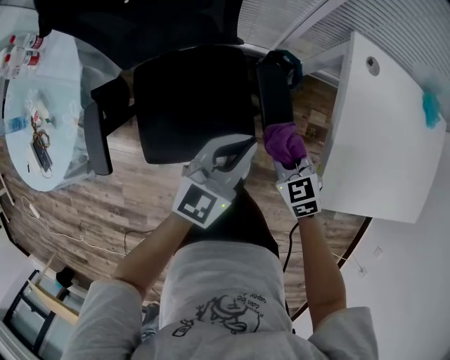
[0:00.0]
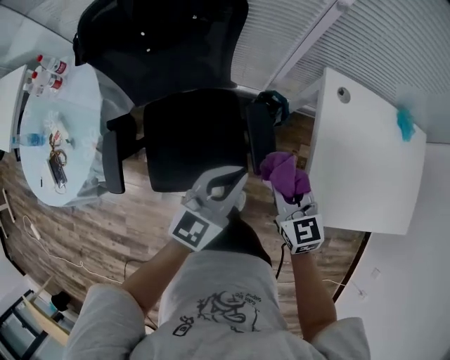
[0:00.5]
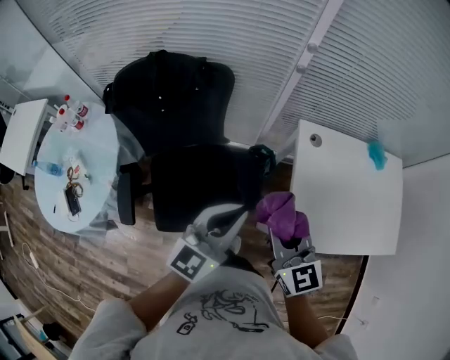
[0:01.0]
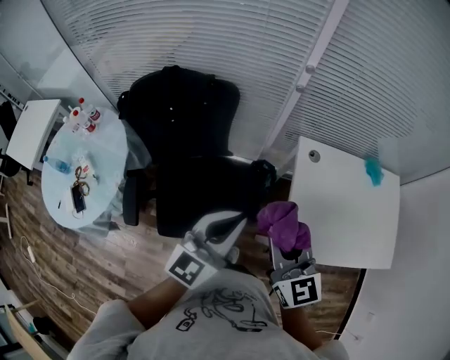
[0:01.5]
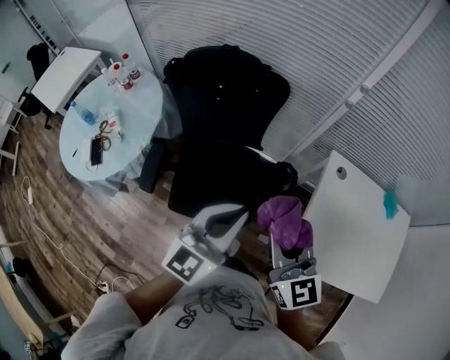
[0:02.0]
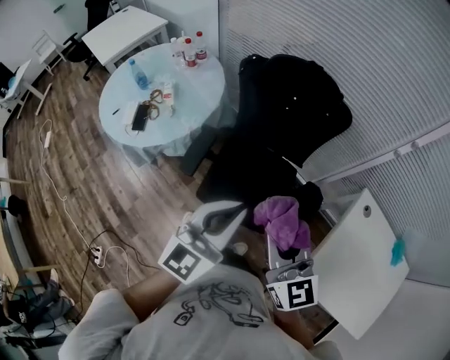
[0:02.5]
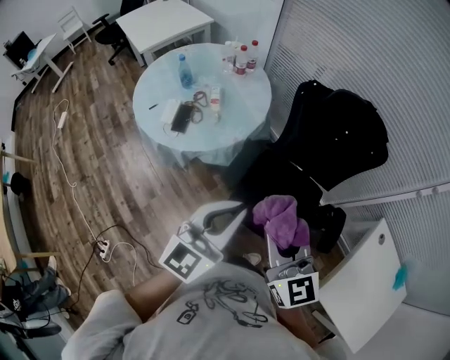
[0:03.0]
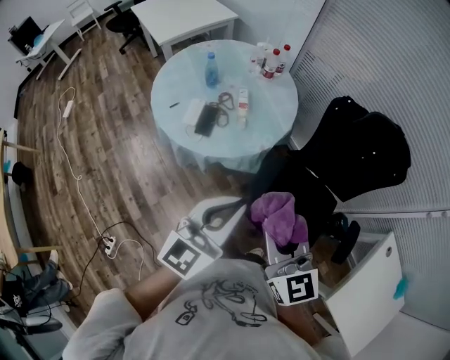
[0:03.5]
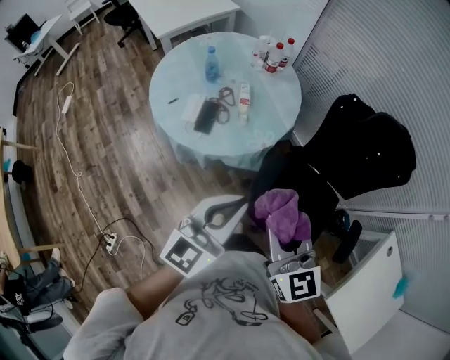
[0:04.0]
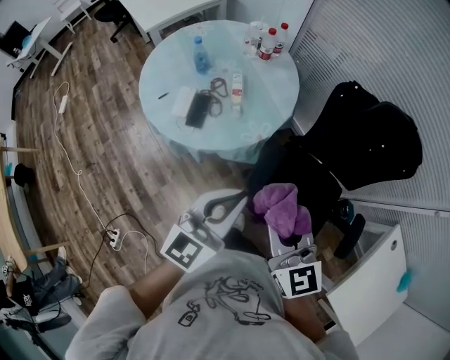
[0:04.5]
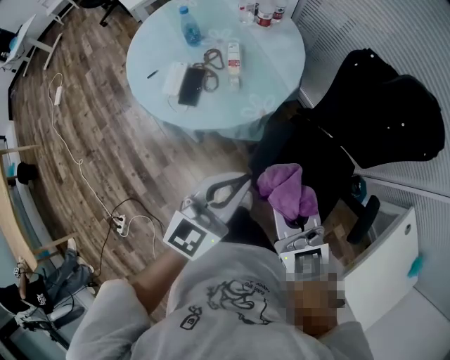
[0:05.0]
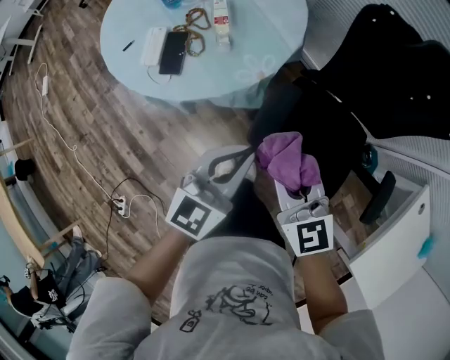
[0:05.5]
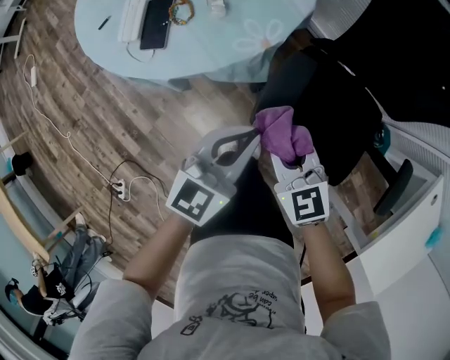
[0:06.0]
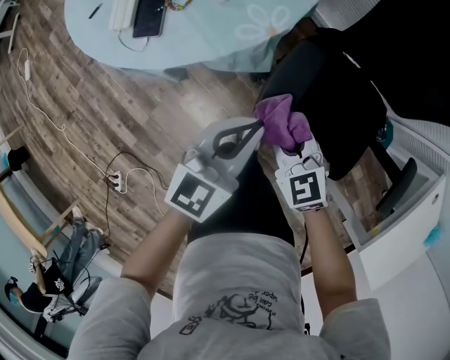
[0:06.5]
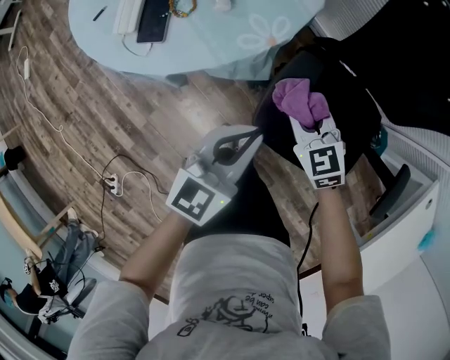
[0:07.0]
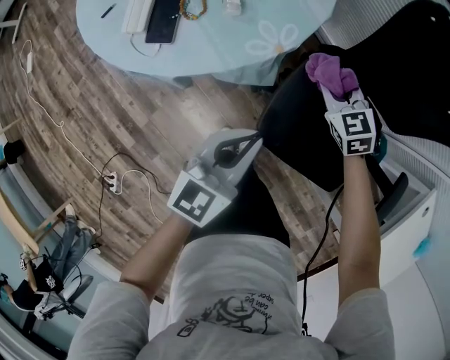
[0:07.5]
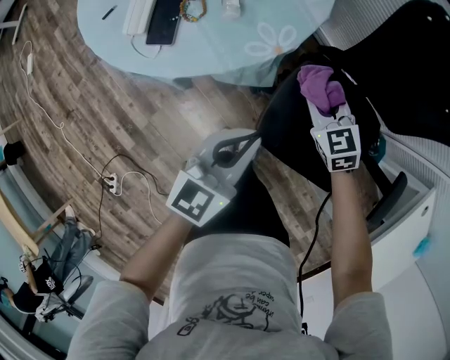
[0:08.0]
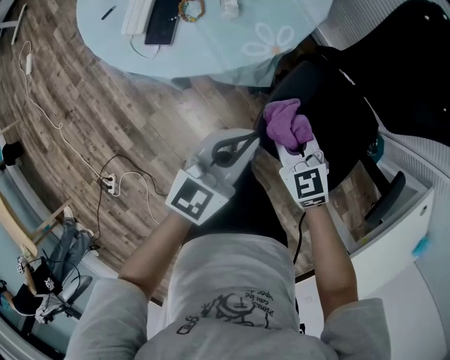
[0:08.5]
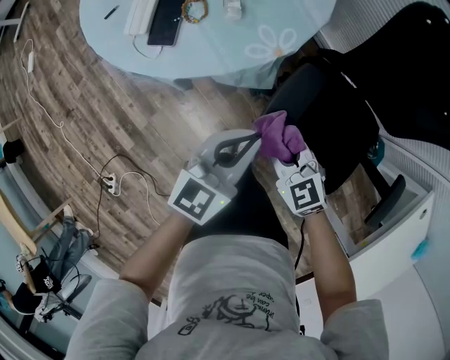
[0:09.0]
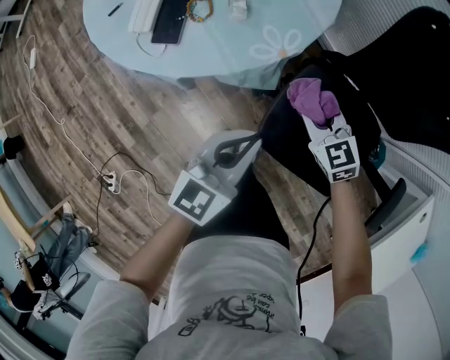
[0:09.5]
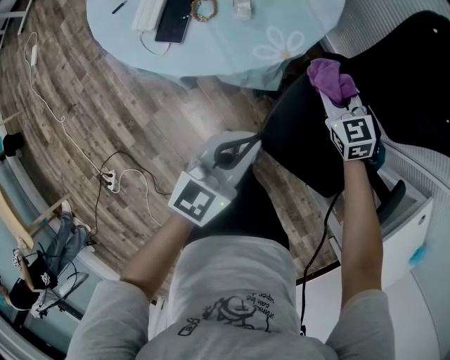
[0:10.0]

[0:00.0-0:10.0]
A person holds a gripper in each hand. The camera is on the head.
0:00.0 to 0:02.0: The grippers both shift upward by roughly 40 cm. The left gripper changes its angle by about 20 degrees. The right gripper angles its fingers upward, by approximately 40 degrees.
0:02.0 to 0:04.0: Both grippers are carried about 50 cm. The right gripper swivels roughly 30 degrees. Meanwhile the left gripper swivels approximately 30 degrees.
0:04.0 to 0:06.0: The grippers both shift downward by approximately 35 cm. The right gripper rotates approximately 20 degrees.
0:06.0 to 0:08.0: The right gripper travels forward and downward by approximately 15 cm.
0:08.0 to 0:10.0: The right gripper travels backward and back again, roughly 15 cm each way.

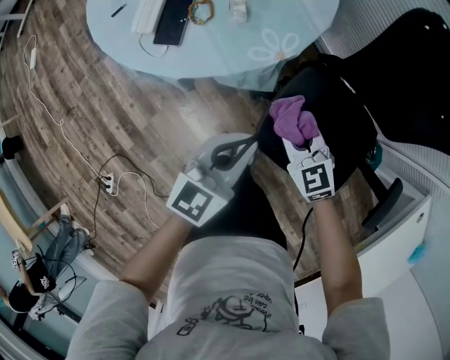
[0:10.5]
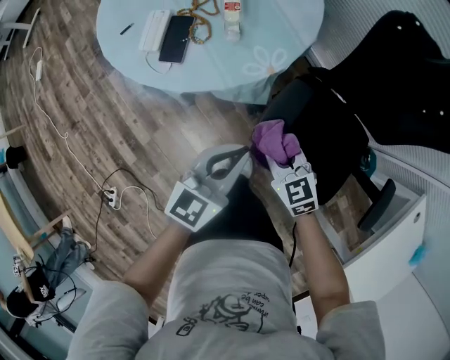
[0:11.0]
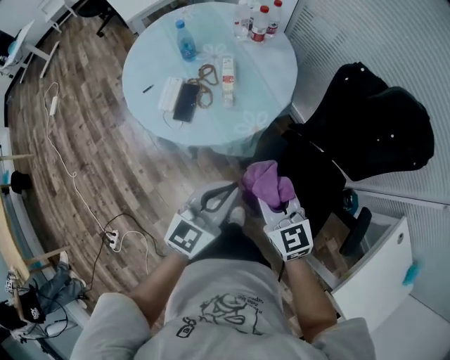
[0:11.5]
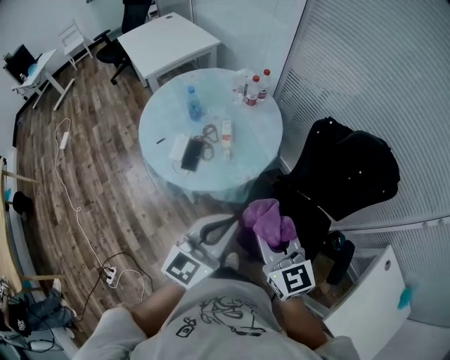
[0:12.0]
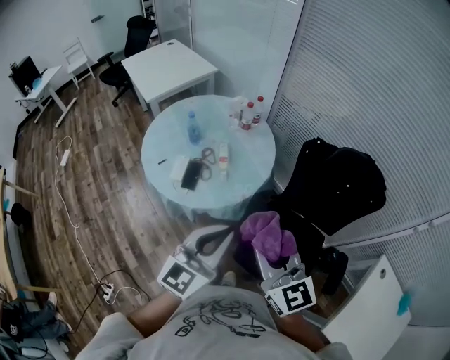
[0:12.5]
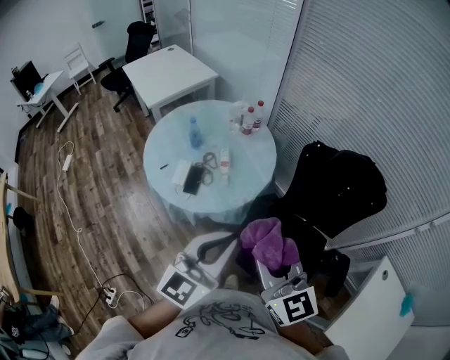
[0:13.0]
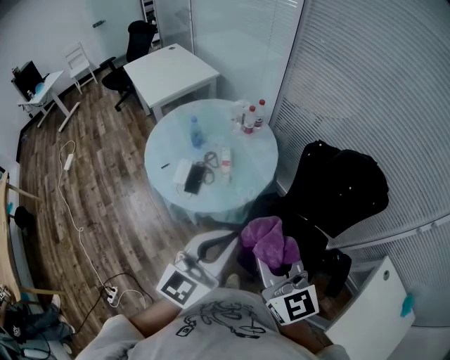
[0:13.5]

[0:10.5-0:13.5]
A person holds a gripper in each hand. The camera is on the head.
0:10.5 to 0:12.0: The grippers both shift upward by roughly 35 cm. The right gripper swivels roughly 30 degrees.
0:12.0 to 0:13.5: The left gripper moves upward, some 10 cm; the right gripper shifts some 10 cm upward and backward.

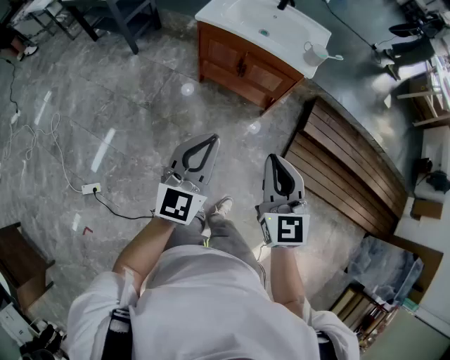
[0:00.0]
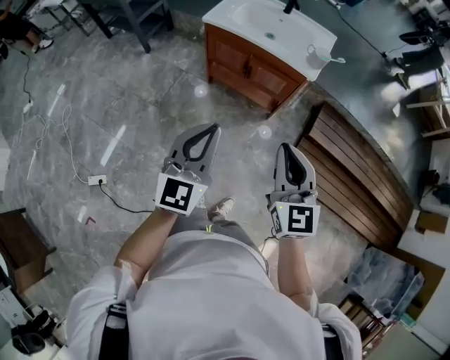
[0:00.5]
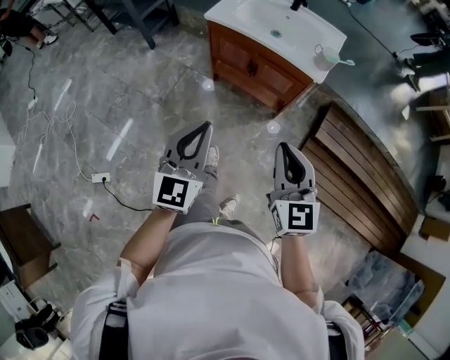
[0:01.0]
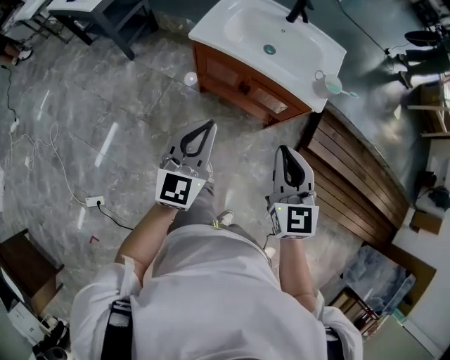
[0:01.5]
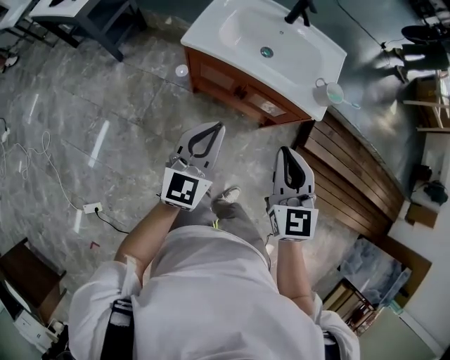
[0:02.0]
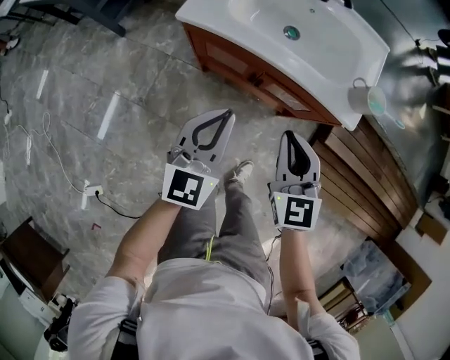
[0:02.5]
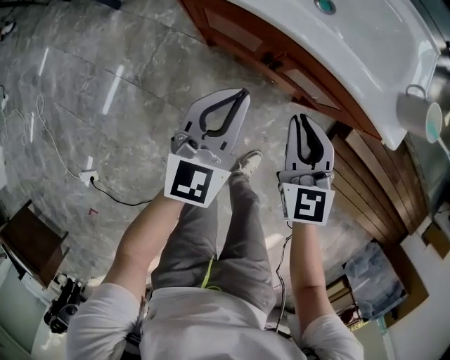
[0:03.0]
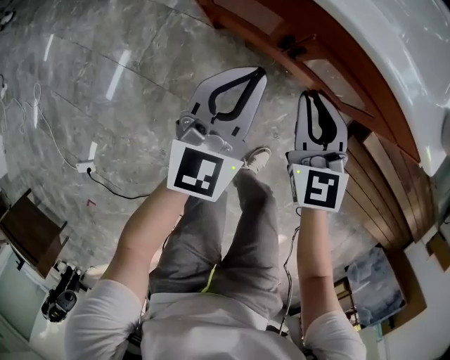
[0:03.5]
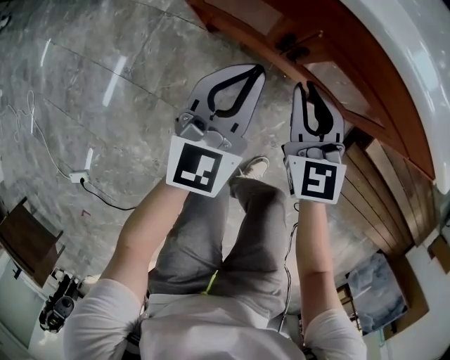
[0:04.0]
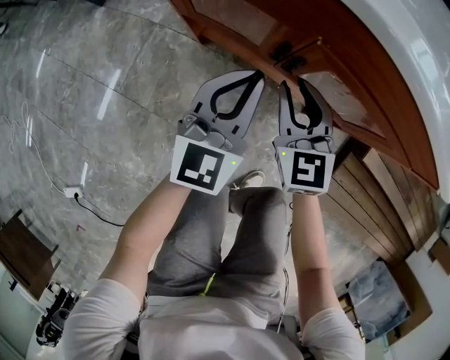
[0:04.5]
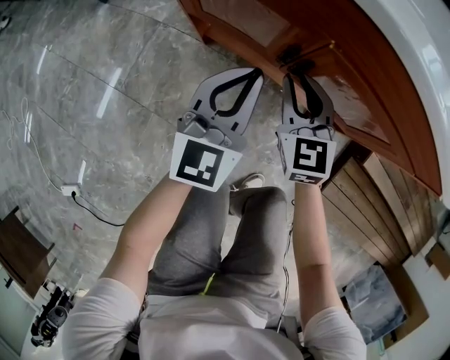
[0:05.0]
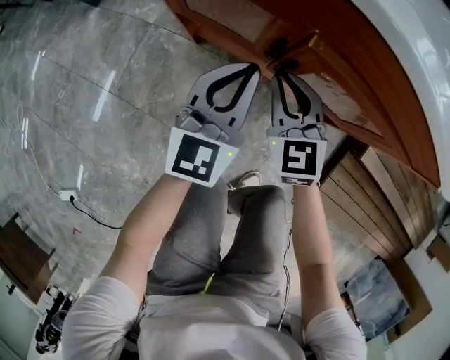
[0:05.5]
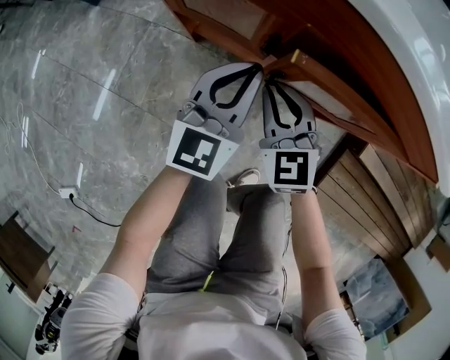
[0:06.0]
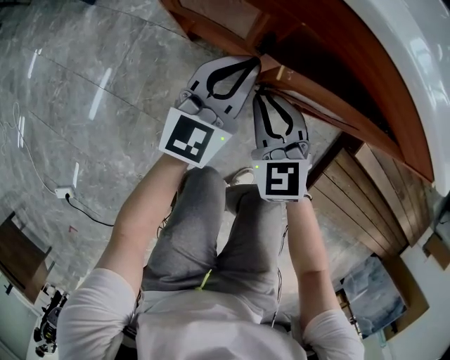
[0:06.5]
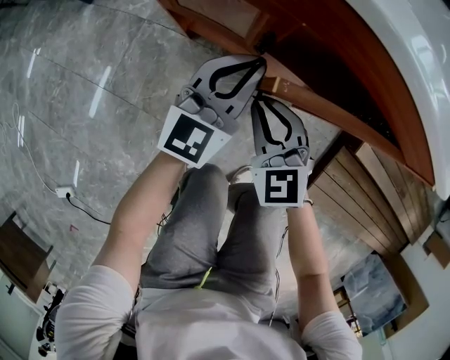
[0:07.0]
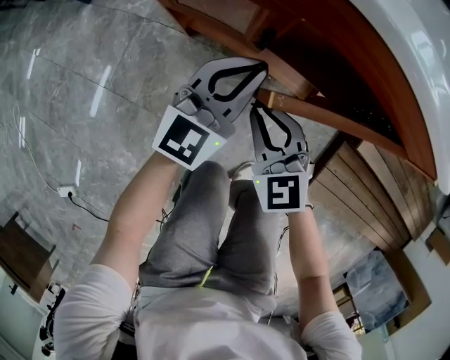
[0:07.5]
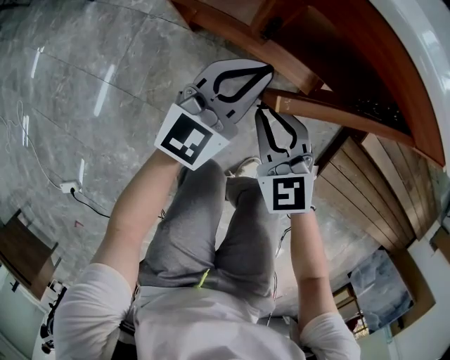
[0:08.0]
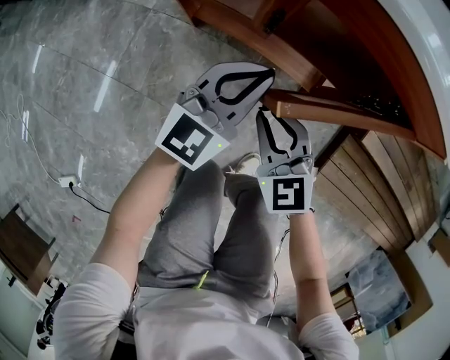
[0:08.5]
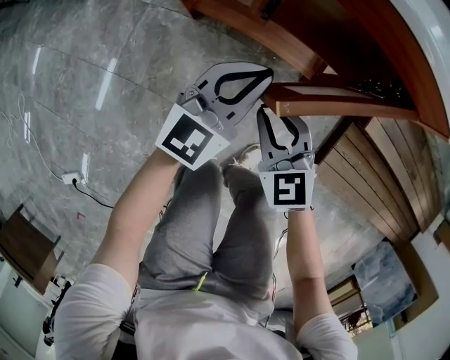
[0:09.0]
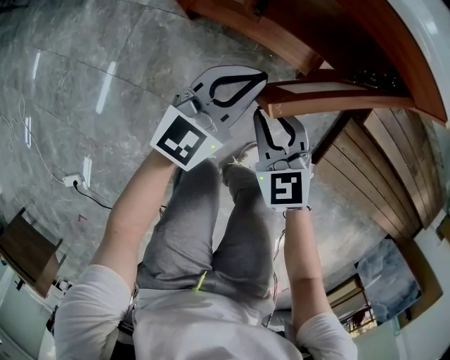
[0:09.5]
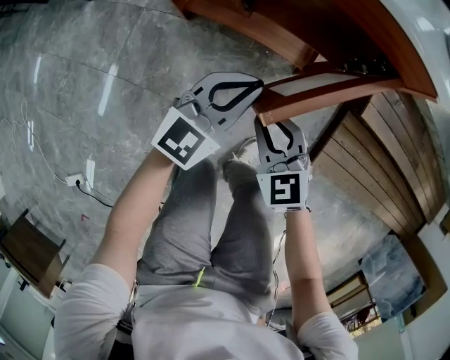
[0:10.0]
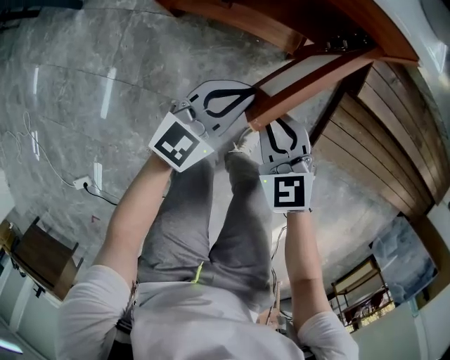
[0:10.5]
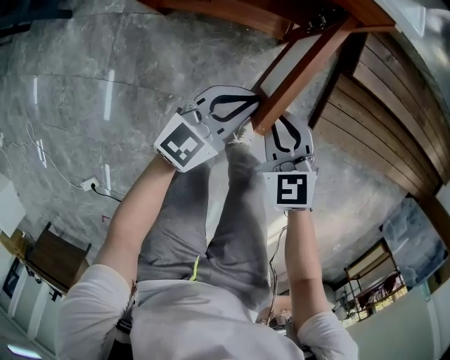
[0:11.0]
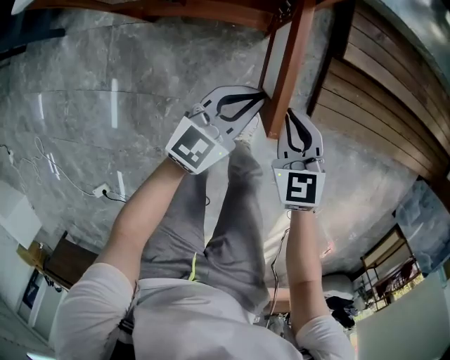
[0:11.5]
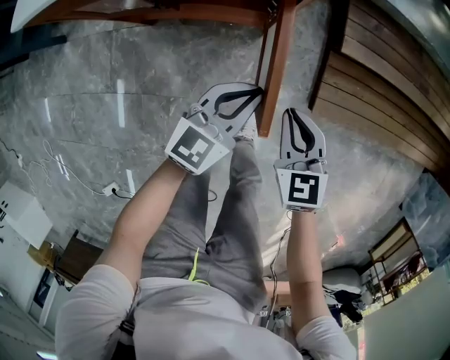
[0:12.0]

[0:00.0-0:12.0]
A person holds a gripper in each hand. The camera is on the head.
0:00.0 to 0:02.0: The grippers both shift forward by roughly 35 cm.
0:02.0 to 0:04.0: Both grippers move downward, some 50 cm.
0:04.0 to 0:06.0: Both grippers move downward, some 5 cm.
0:06.0 to 0:08.0: The right gripper travels backward by roughly 10 cm.
0:08.0 to 0:10.0: Both grippers travel together backward and to the right, some 10 cm.
0:10.0 to 0:12.0: The right gripper travels to the right and upward by approximately 20 cm, and rotates about 30 degrees, while the left gripper goes approximately 20 cm to the right.

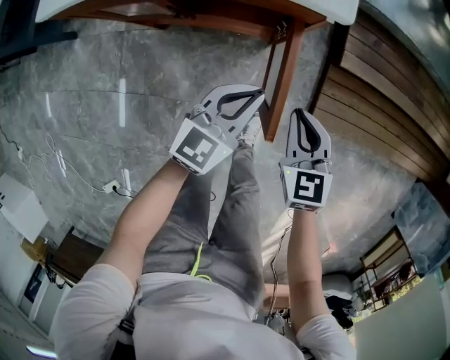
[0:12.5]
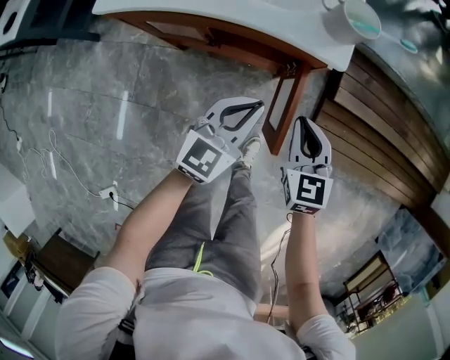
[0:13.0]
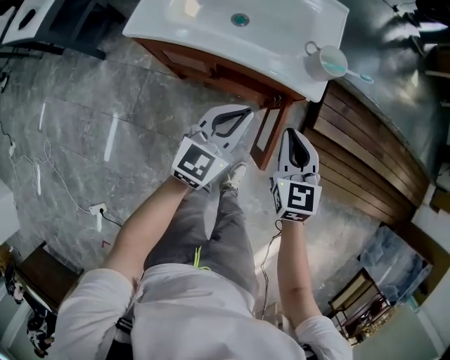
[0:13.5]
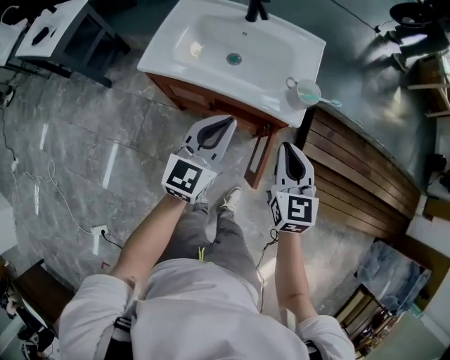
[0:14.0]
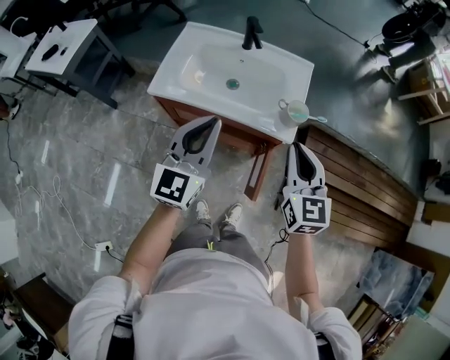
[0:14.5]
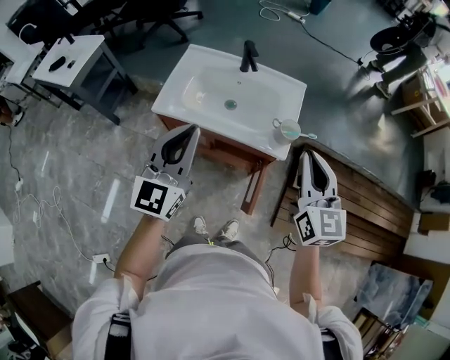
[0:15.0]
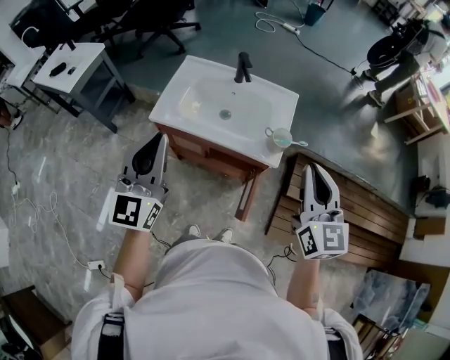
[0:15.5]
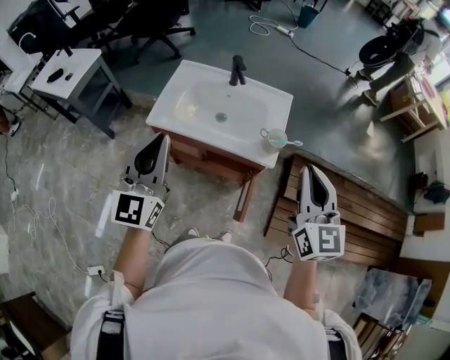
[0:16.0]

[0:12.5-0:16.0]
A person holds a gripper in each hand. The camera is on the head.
0:12.5 to 0:14.5: Both grippers move upward, some 50 cm. The right gripper turns by roughly 20 degrees. The left gripper rotates roughly 40 degrees.
0:14.5 to 0:16.0: The right gripper goes some 15 cm upward; the left gripper travels upward, to the left and backward by roughly 15 cm.
